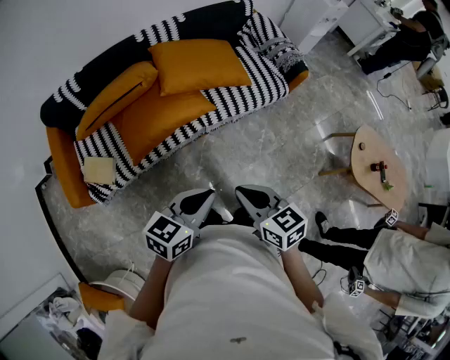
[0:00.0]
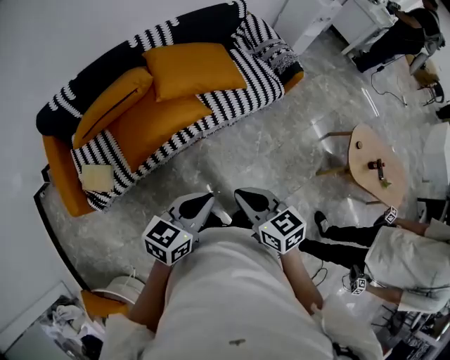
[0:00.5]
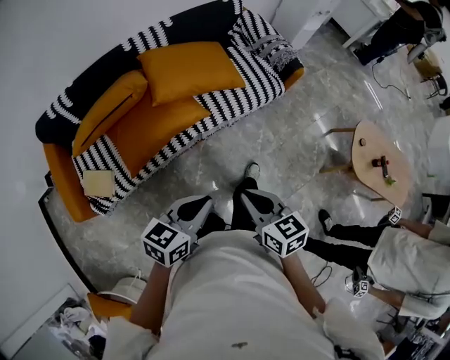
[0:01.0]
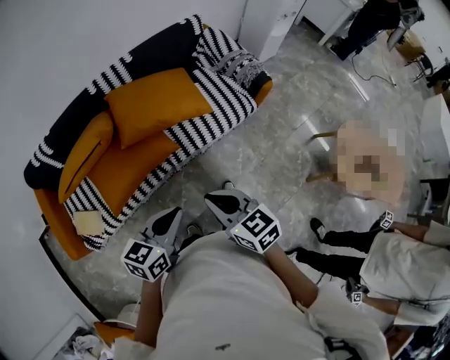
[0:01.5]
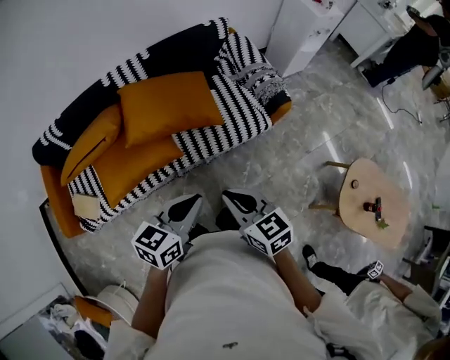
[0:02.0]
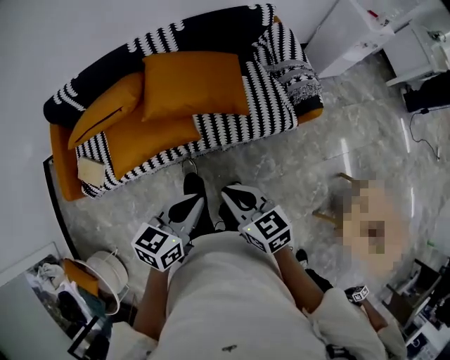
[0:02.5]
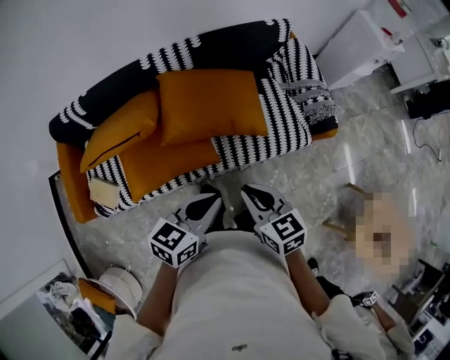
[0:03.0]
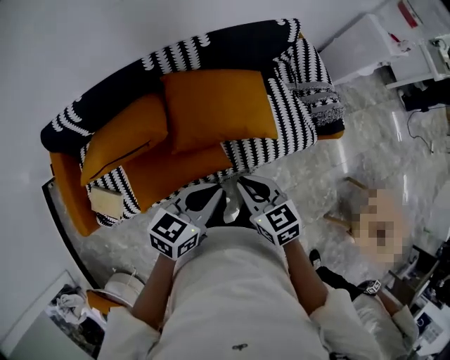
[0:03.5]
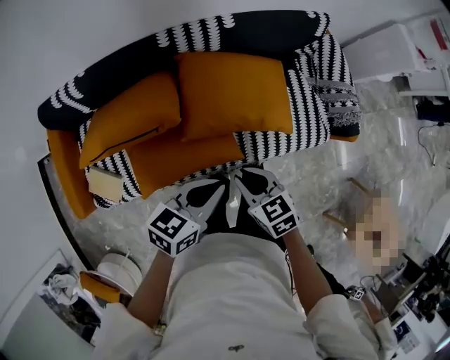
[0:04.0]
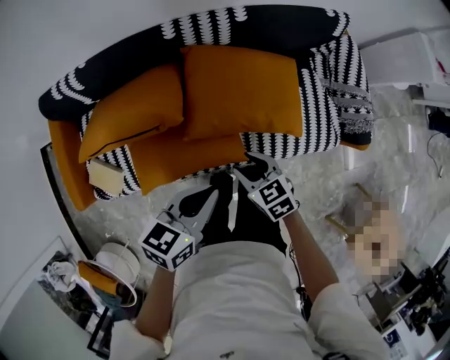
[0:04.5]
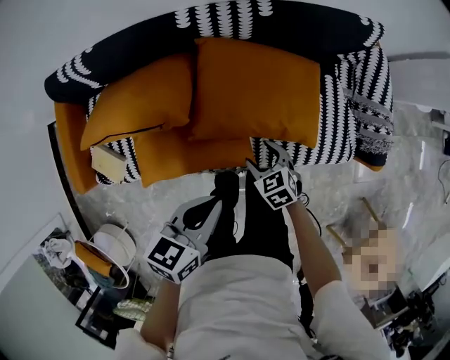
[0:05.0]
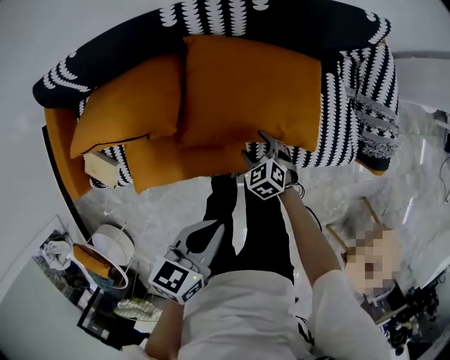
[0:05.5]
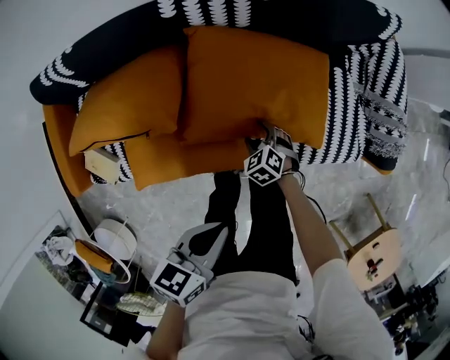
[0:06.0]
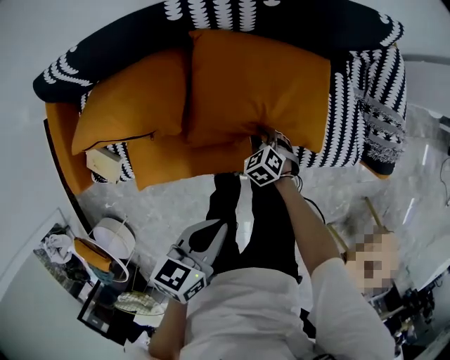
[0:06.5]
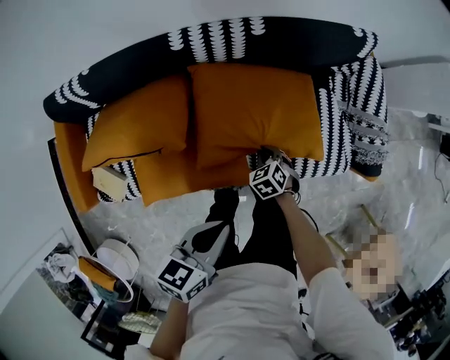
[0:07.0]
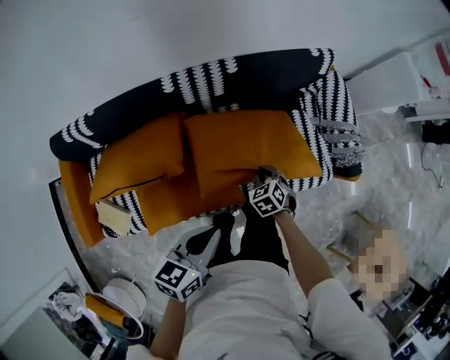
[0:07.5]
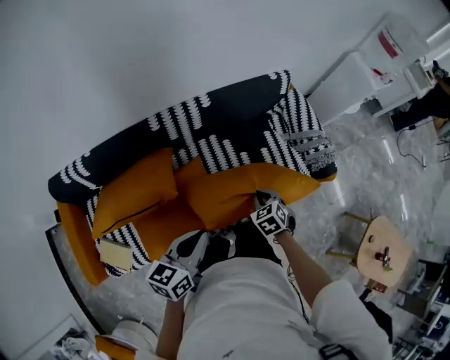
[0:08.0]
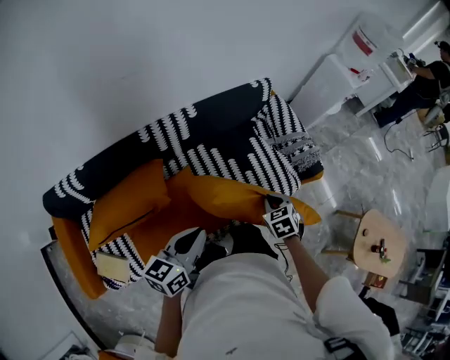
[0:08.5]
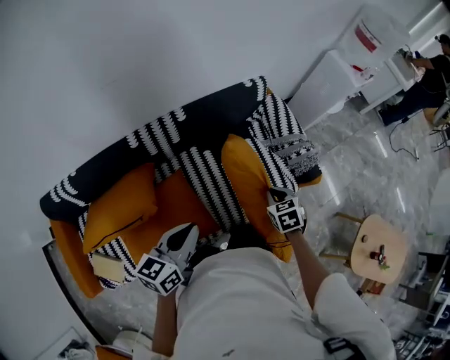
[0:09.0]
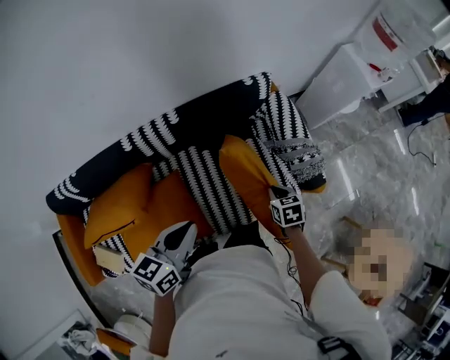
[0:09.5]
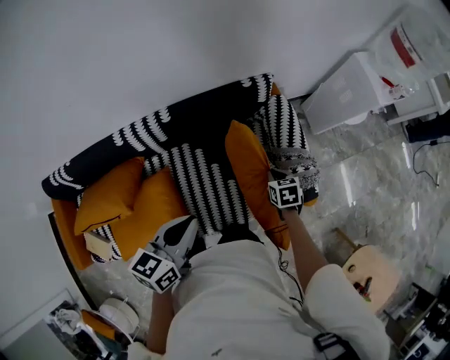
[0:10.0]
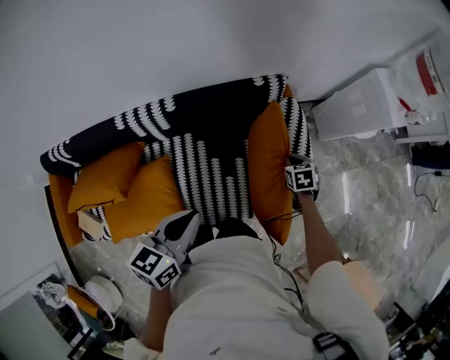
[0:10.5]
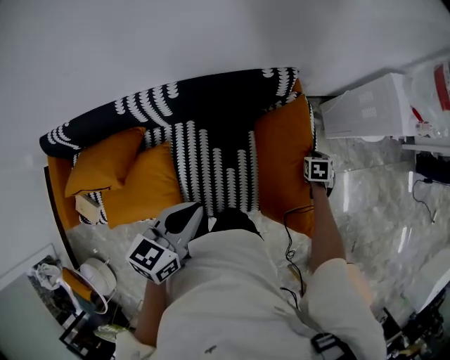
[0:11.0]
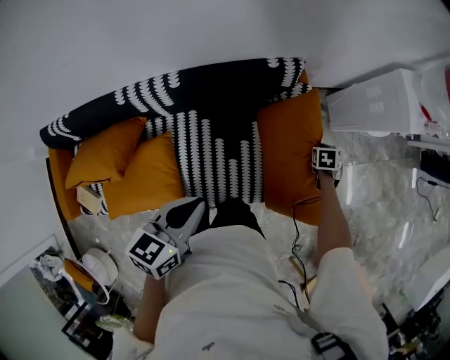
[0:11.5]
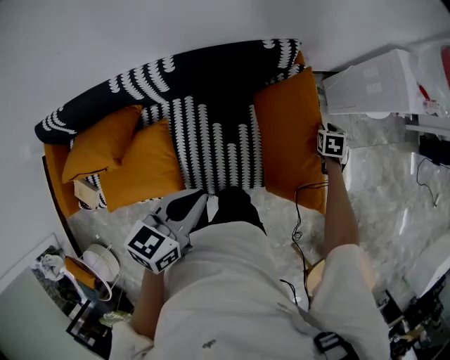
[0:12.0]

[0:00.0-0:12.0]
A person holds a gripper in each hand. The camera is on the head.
0:00.0 to 0:02.0: The two grippers go some 30 cm forward and to the right.
0:02.0 to 0:04.0: The left gripper is displaced to the left and forward by approximately 30 cm, while the right gripper is displaced to the left, forward and downward by some 35 cm, and changes its angle by some 20 degrees.
0:04.0 to 0:06.0: The right gripper travels downward and forward by about 35 cm, rotates about 40 degrees, and opens, while the left gripper moves downward, some 10 cm, and changes its angle by roughly 20 degrees.
0:06.0 to 0:08.0: The right gripper moves upward, roughly 25 cm, swivels approximately 30 degrees, and closes its fingers. Meanwhile the left gripper moves upward and to the left, approximately 15 cm, and changes its angle by approximately 30 degrees.
0:08.0 to 0:10.0: Both grippers move forward and to the right, roughly 35 cm. The right gripper rotates some 30 degrees.
0:10.0 to 0:12.0: The right gripper goes about 20 cm forward and to the right; the left gripper ends up about 5 cm from where it was.

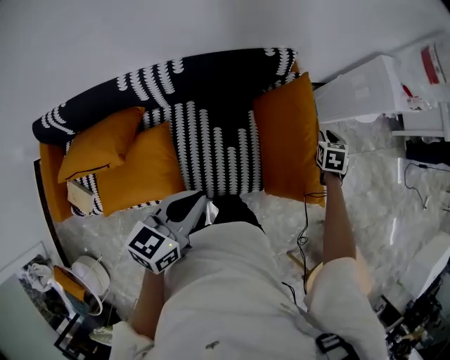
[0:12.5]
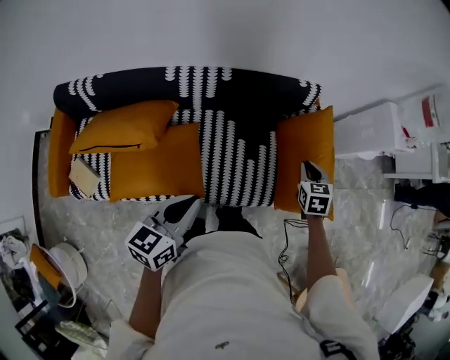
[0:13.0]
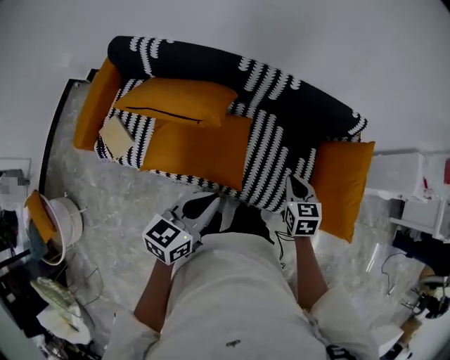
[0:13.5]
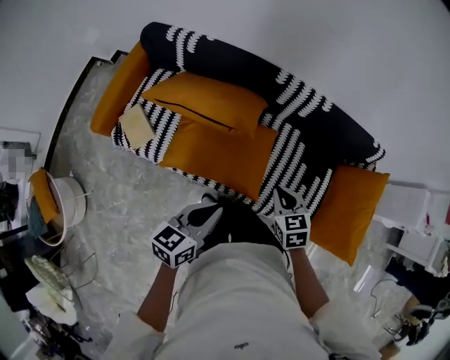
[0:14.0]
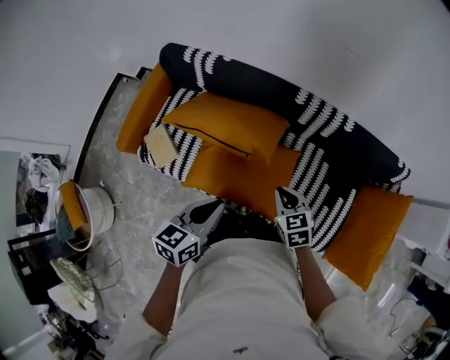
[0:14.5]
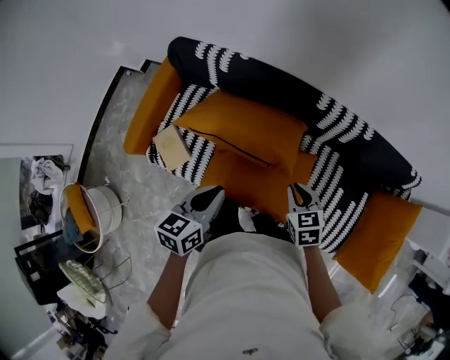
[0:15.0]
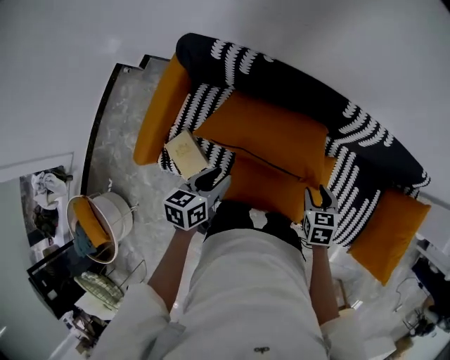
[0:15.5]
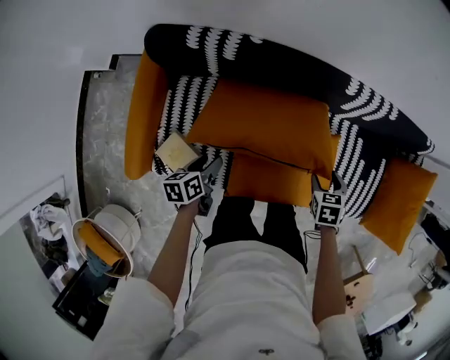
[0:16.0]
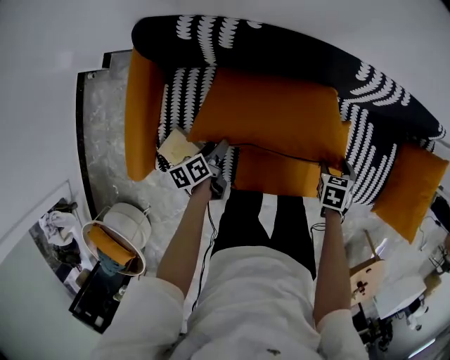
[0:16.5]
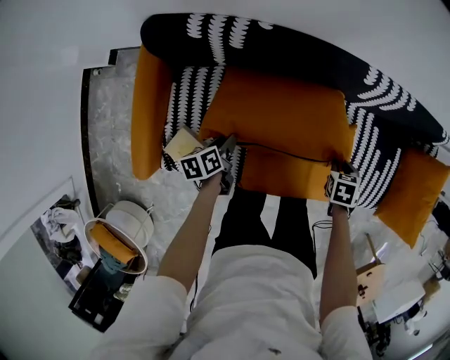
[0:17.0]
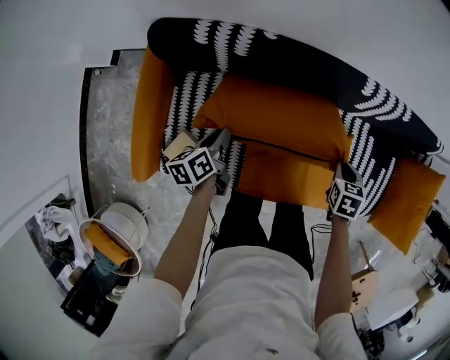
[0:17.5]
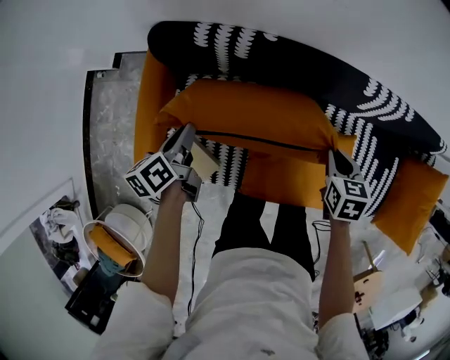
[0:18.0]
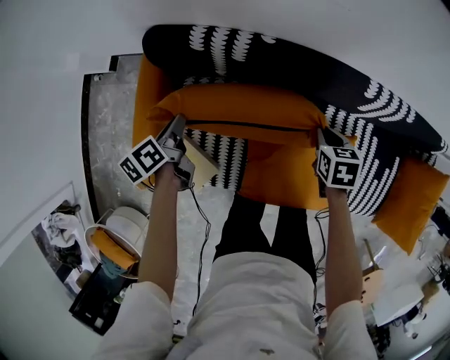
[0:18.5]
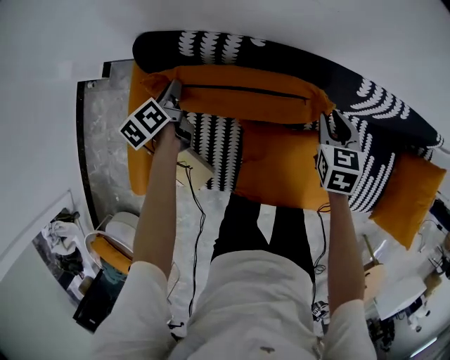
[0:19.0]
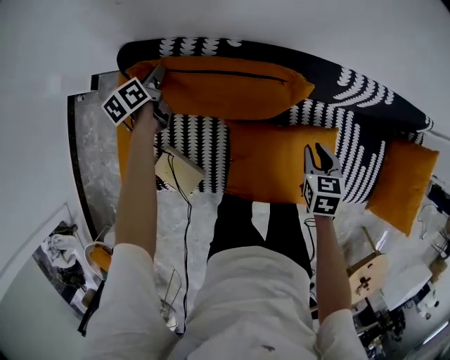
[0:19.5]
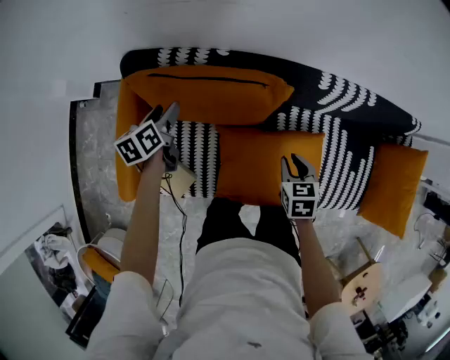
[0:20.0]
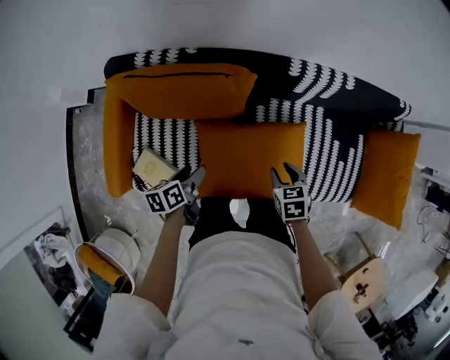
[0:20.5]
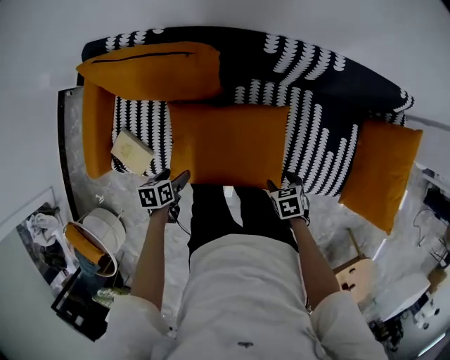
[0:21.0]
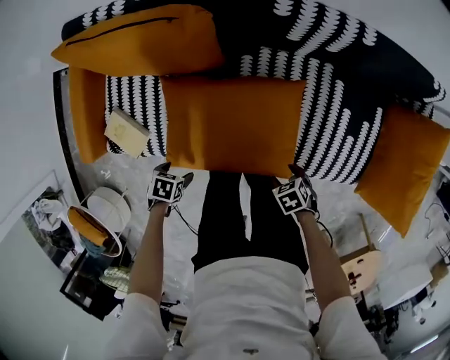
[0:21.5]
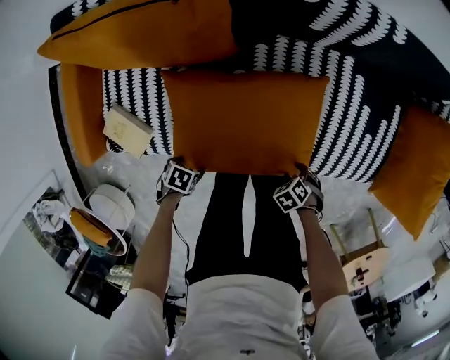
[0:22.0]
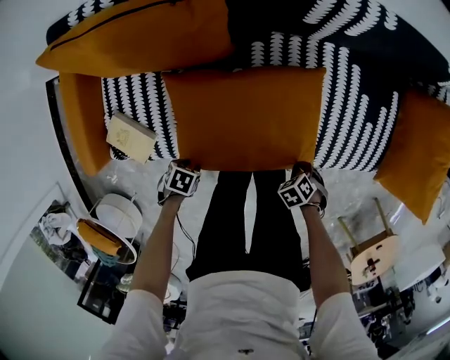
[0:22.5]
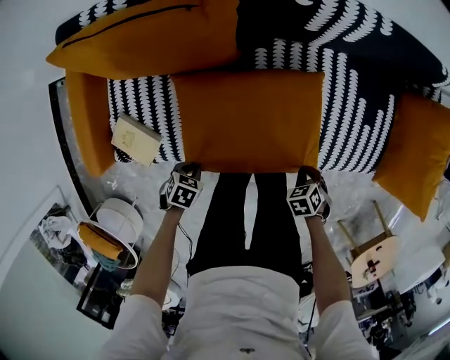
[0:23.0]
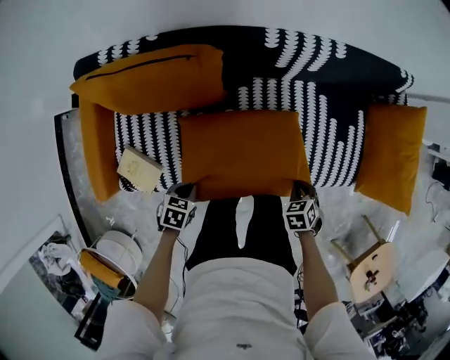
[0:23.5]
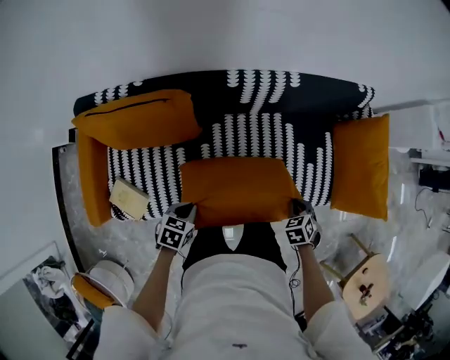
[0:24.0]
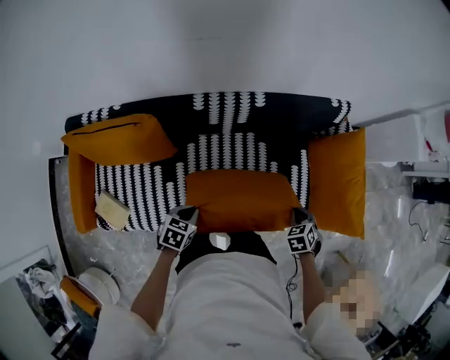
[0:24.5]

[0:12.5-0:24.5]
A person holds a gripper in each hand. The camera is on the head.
0:12.5 to 0:14.5: The pair of grippers is taken some 60 cm. The left gripper rotates roughly 40 degrees, while the right gripper changes its angle by about 60 degrees.
0:14.5 to 0:16.5: The left gripper changes place by some 50 cm, rotates approximately 40 degrees, and opens up. The right gripper goes some 15 cm downward, changes its angle by roughly 50 degrees, and opens.
0:16.5 to 0:18.5: The right gripper shifts by roughly 20 cm, rotates about 20 degrees, and closes up. The left gripper ends up about 20 cm from where it was, and closes up.
0:18.5 to 0:20.5: The right gripper goes about 25 cm backward and to the right, and opens up; the left gripper shifts about 30 cm to the right and backward, turns by about 20 degrees, and opens its fingers.
0:20.5 to 0:22.5: The grippers both shift downward by about 25 cm. The right gripper swivels approximately 40 degrees, and closes; the left gripper changes its angle by approximately 60 degrees.
0:22.5 to 0:24.5: The right gripper changes place by some 40 cm, and swivels approximately 30 degrees, while the left gripper shifts by roughly 40 cm, changes its angle by roughly 30 degrees, and closes its fingers.

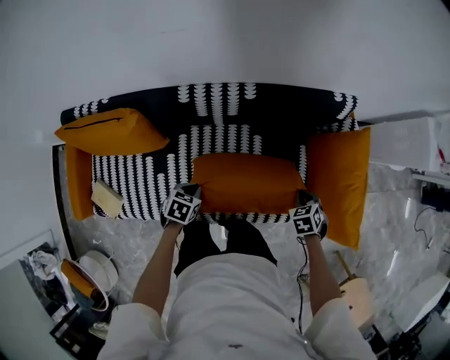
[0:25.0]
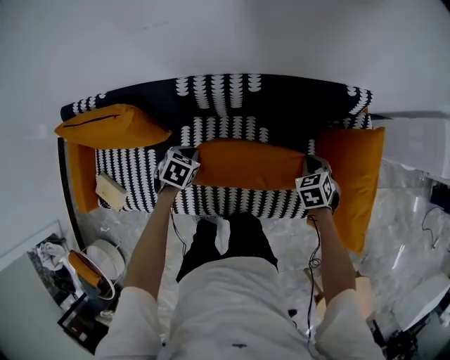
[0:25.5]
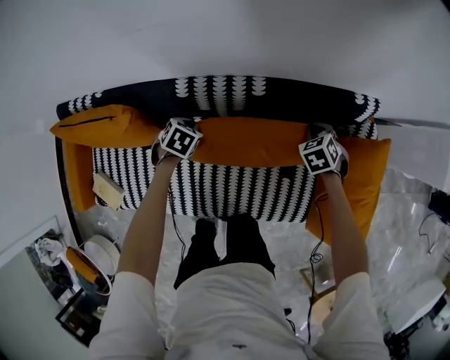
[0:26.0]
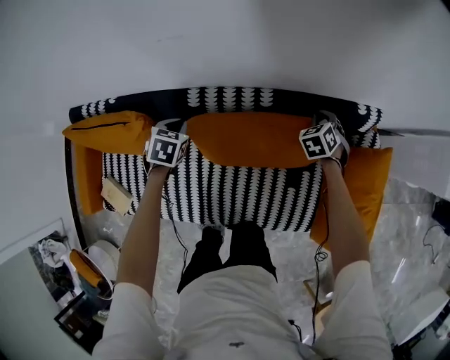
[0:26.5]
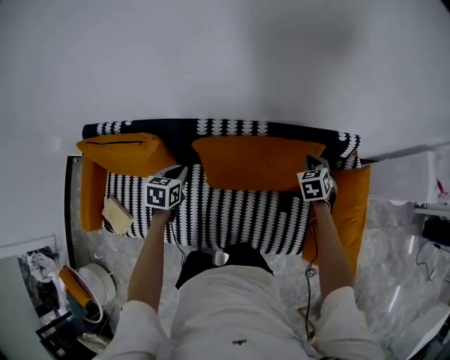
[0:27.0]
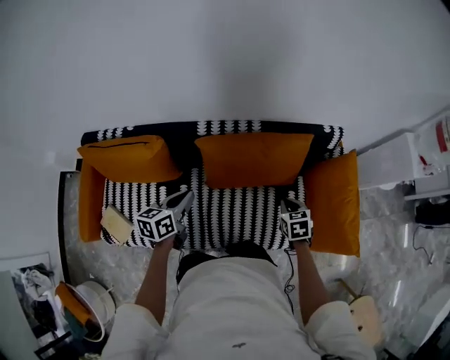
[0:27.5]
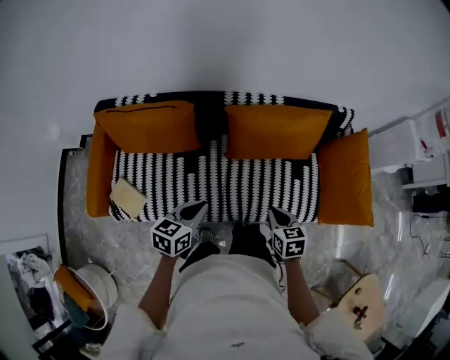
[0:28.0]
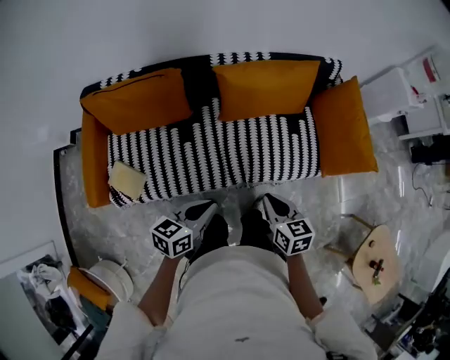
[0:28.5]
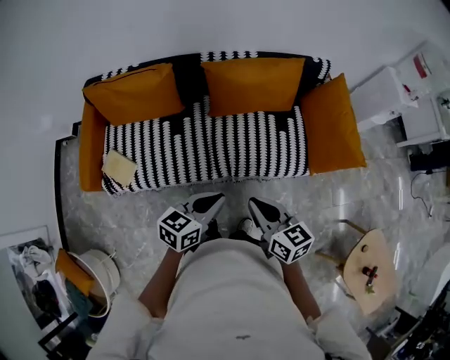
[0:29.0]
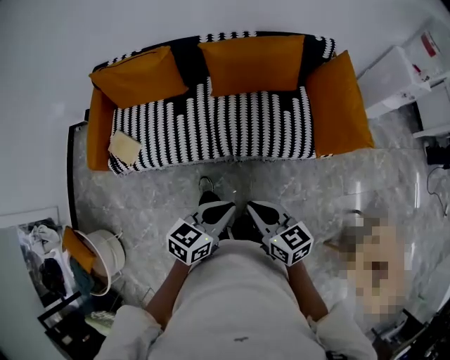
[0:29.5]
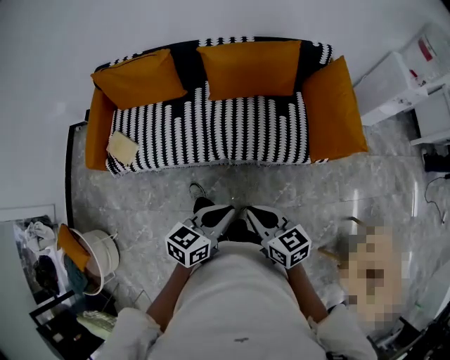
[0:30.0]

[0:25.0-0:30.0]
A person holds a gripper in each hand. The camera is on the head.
0:25.0 to 0:27.5: The left gripper shifts roughly 20 cm upward, and tips its fingers upward by roughly 40 degrees. The right gripper goes approximately 15 cm to the left and upward, moves approximately 30 cm forward and comes back, and turns by about 20 degrees.
0:27.5 to 0:30.0: The two grippers travel together, backward, roughly 50 cm. The right gripper rotates about 40 degrees.
